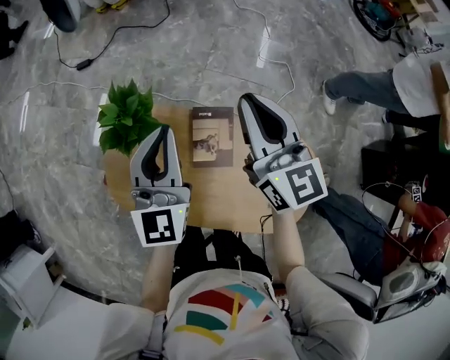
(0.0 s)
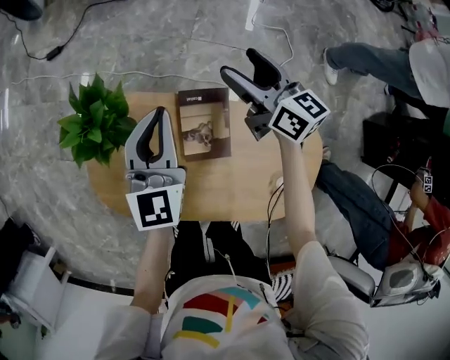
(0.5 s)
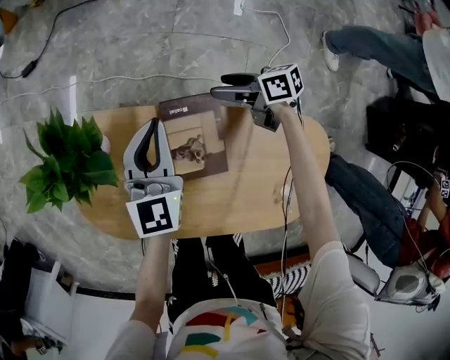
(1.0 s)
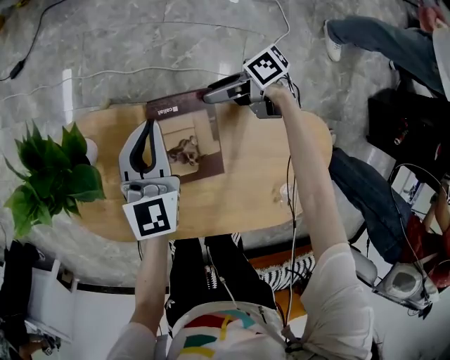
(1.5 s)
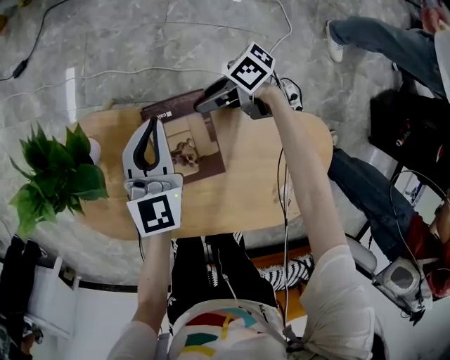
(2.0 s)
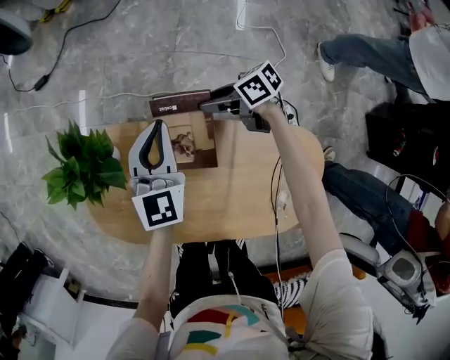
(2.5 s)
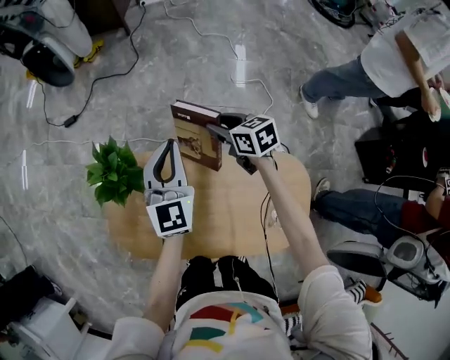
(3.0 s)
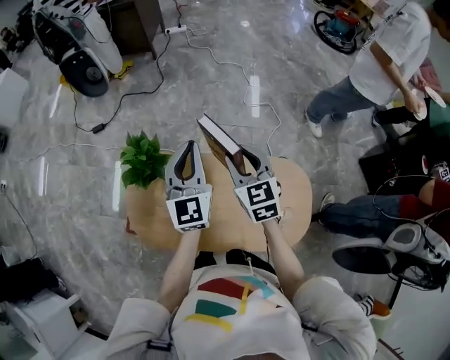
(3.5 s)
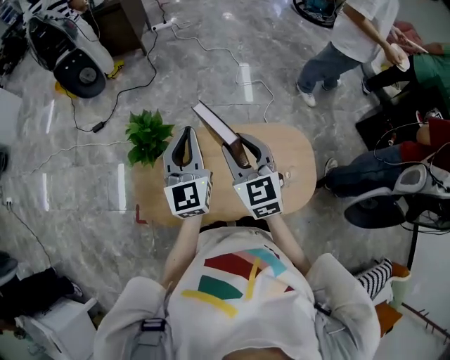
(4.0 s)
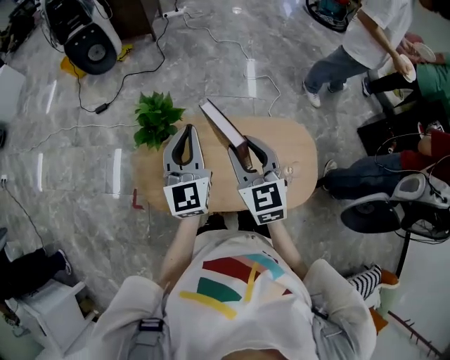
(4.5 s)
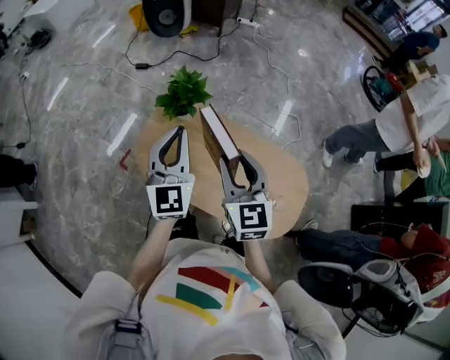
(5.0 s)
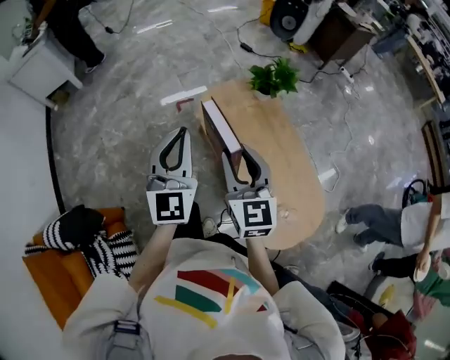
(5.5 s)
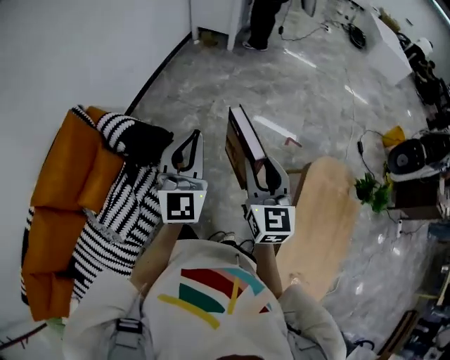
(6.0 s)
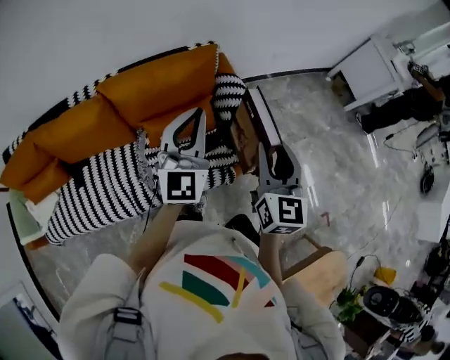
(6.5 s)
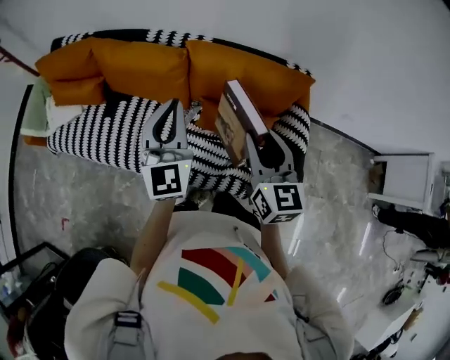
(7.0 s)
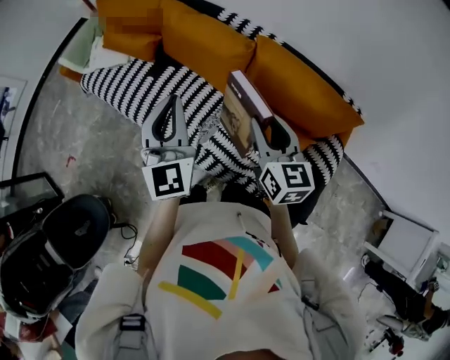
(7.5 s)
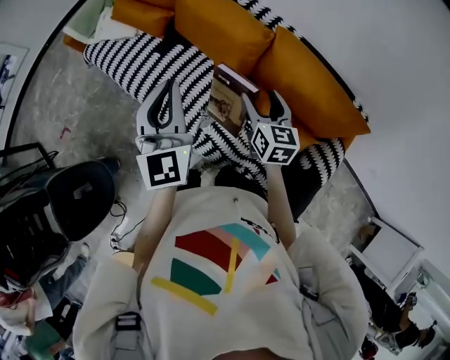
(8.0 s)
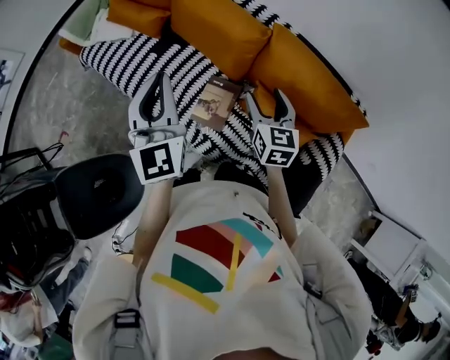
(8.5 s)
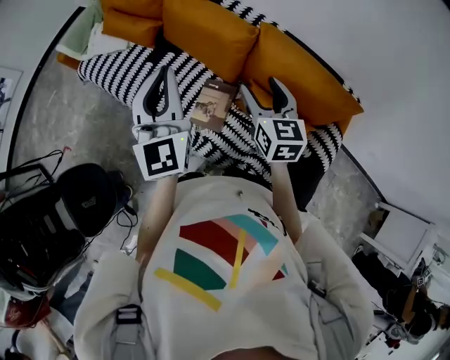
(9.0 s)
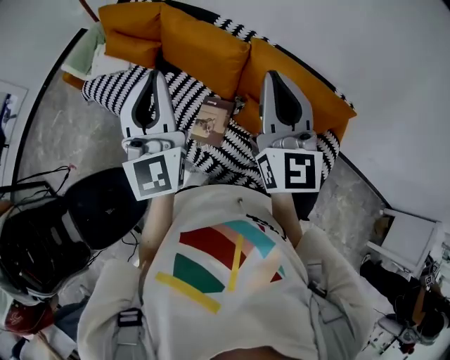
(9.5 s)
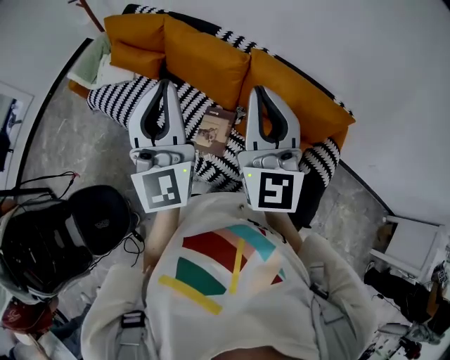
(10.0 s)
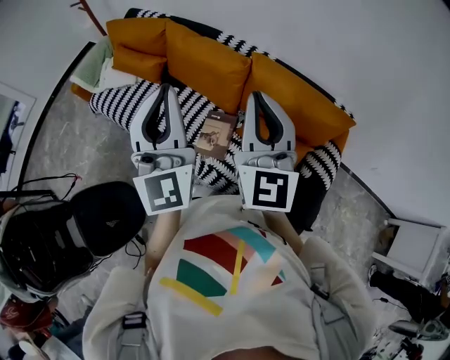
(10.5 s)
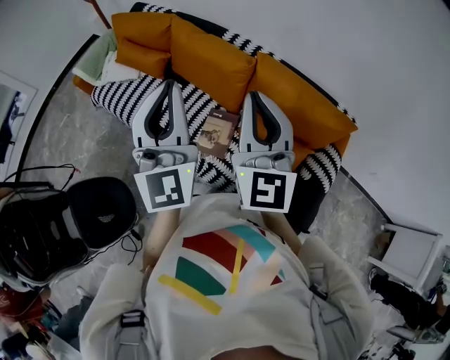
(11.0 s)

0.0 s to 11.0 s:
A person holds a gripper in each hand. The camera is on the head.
0.0 to 2.0 s: The left gripper shifts roughly 30 cm downward, and turns by roughly 20 degrees. Meanwhile the right gripper travels downward by about 50 cm, changes its angle by about 90 degrees, and opens.
2.0 to 3.5 s: Both grippers travel together upward, roughly 40 cm. The left gripper swivels some 20 degrees; the right gripper swivels some 90 degrees.
3.5 to 5.5 s: The two grippers travel together, roughly 50 cm. The left gripper changes its angle by approximately 60 degrees, while the right gripper turns by roughly 50 degrees.
5.5 to 7.5 s: The two grippers travel together, roughly 1 m. The left gripper turns by roughly 150 degrees. The right gripper turns by approximately 150 degrees.
7.5 to 9.0 s: The right gripper moves forward, approximately 5 cm, reaches roughly 10 cm downward, then returns, and opens up.
9.0 to 11.0 s: The right gripper moves upward and backward, about 20 cm, turns by about 30 degrees, and closes, while the left gripper goes some 15 cm upward and backward.

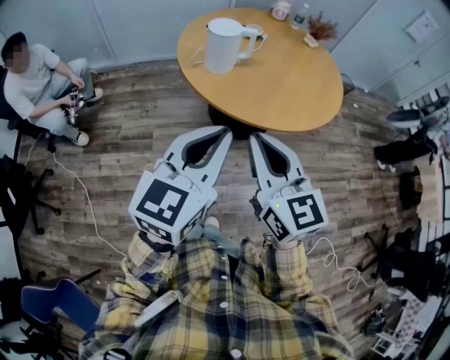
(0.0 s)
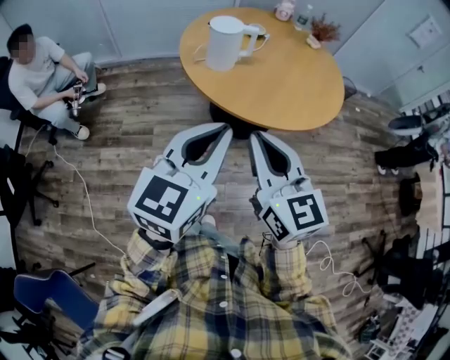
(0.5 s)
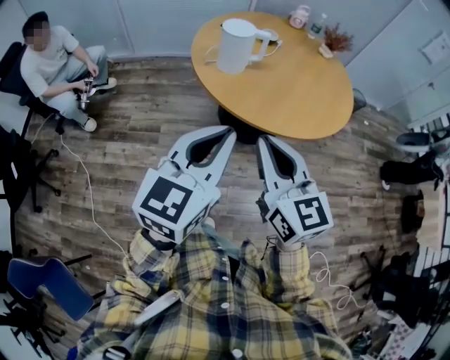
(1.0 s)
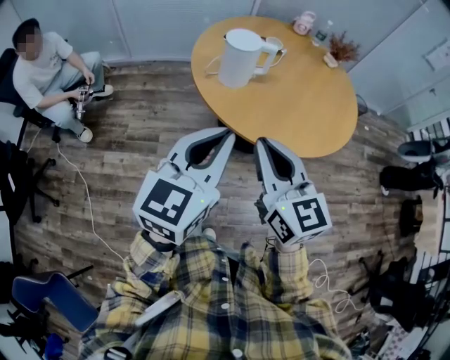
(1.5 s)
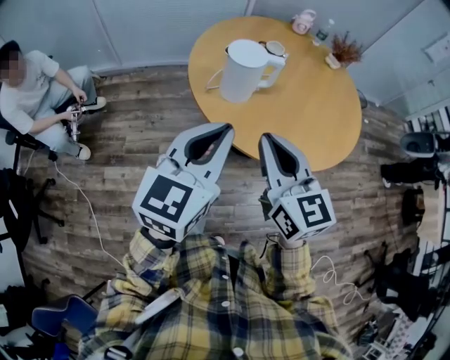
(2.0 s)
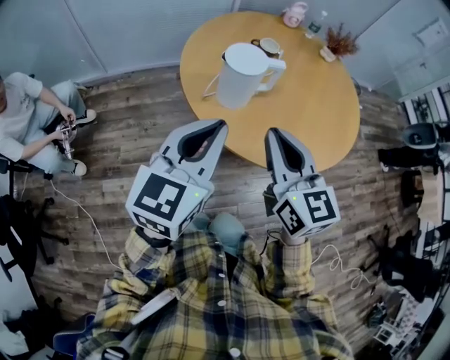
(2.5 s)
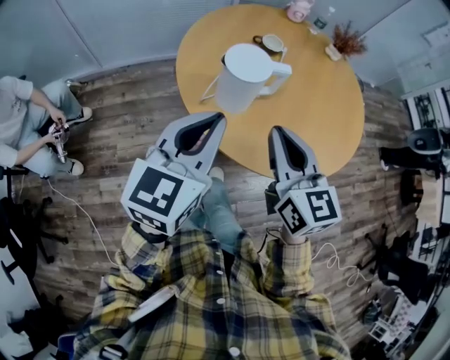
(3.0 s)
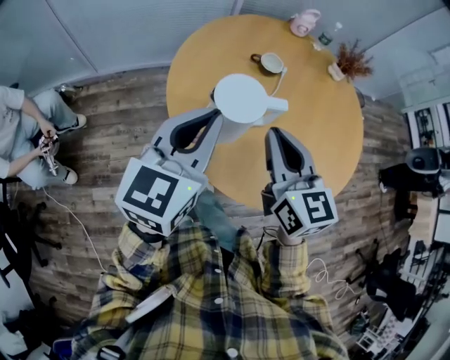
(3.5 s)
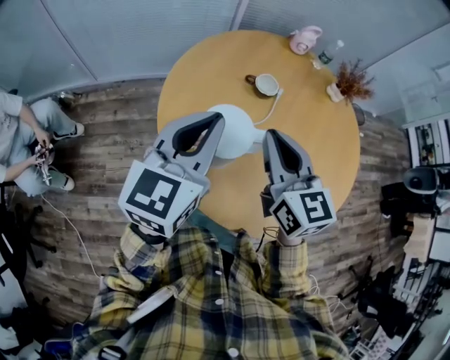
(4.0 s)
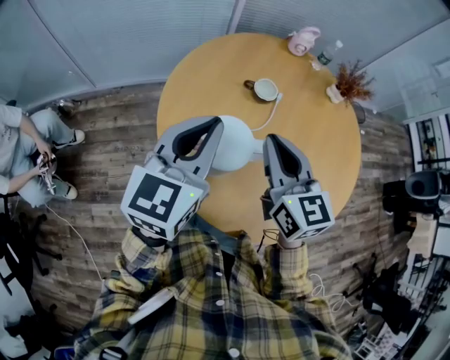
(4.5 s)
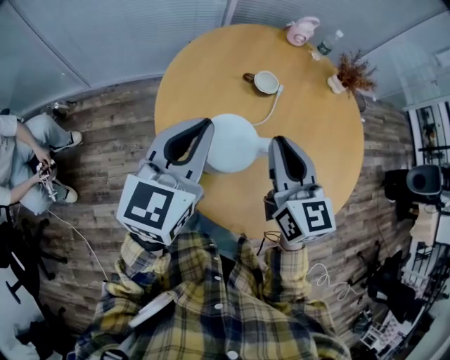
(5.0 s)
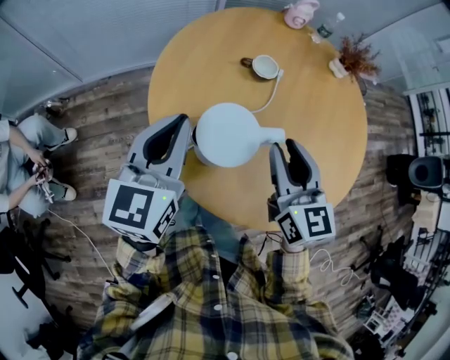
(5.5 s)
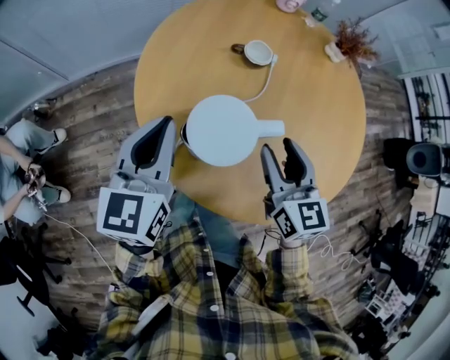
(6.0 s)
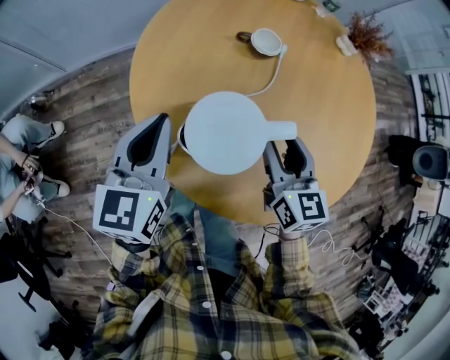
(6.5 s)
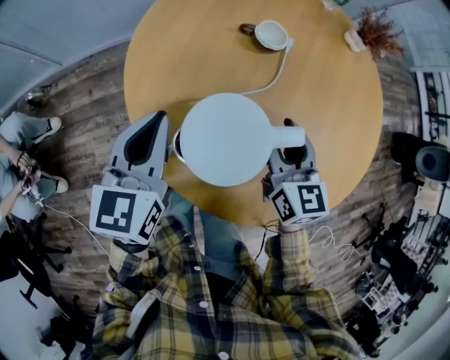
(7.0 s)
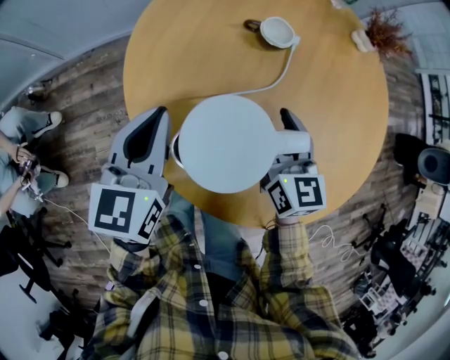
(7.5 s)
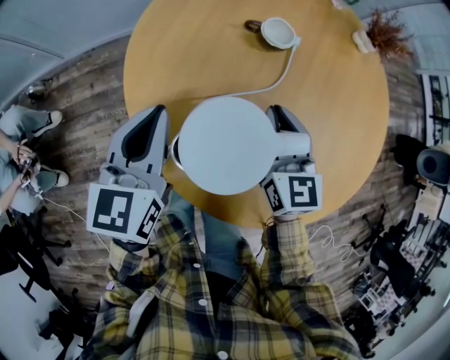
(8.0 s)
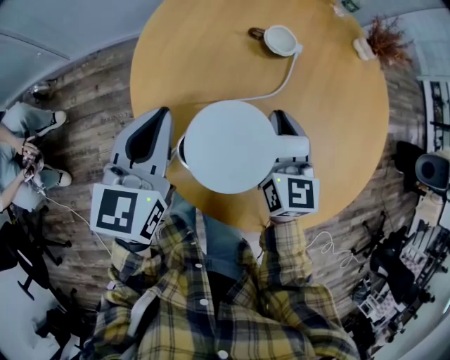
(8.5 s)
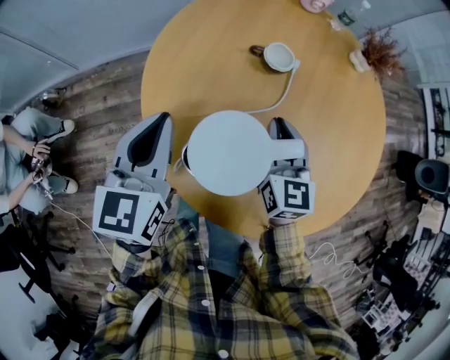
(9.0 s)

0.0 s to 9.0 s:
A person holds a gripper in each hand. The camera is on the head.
0.0 to 2.0 s: The two grippers go about 15 cm forward.
2.0 to 4.5 s: Both grippers travel together forward, approximately 30 cm.
4.5 to 7.0 s: The right gripper travels downward by about 15 cm, and opens. Meanwhile the left gripper shifts some 20 cm downward and to the left.
7.0 to 9.0 s: The right gripper closes up.

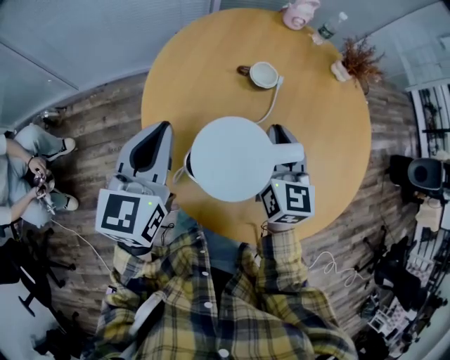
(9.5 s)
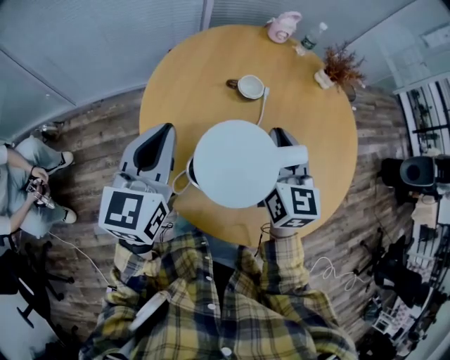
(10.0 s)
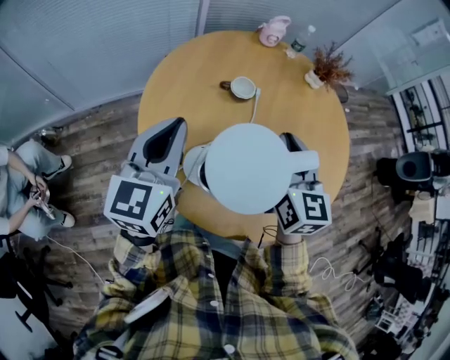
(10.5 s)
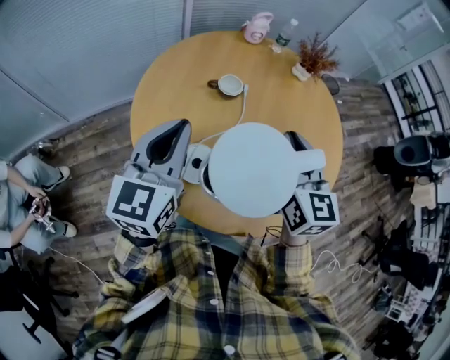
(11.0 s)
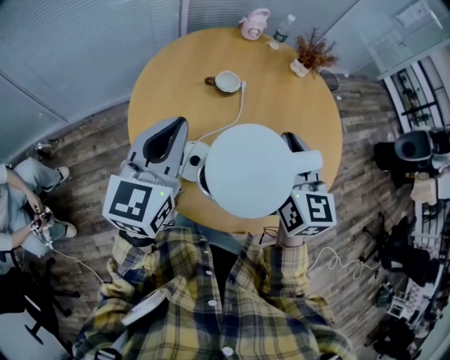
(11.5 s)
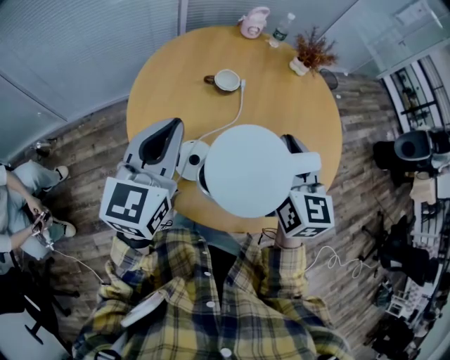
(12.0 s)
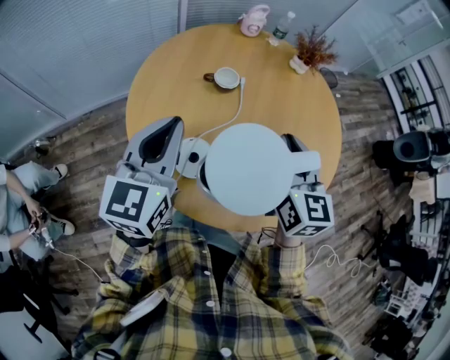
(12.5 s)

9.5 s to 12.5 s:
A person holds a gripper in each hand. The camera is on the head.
9.5 to 11.0 s: The right gripper goes some 15 cm upward, to the right and backward, while the left gripper is displaced to the right and upward by about 10 cm.
11.0 to 12.5 s: The grippers move only a little.

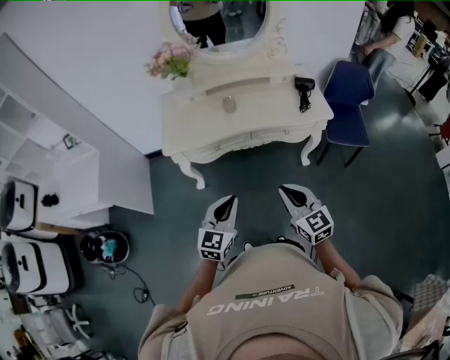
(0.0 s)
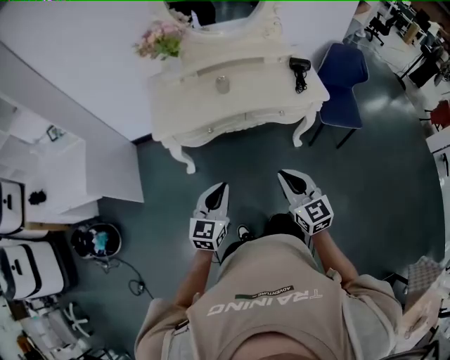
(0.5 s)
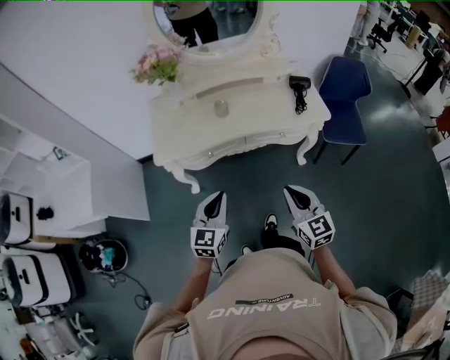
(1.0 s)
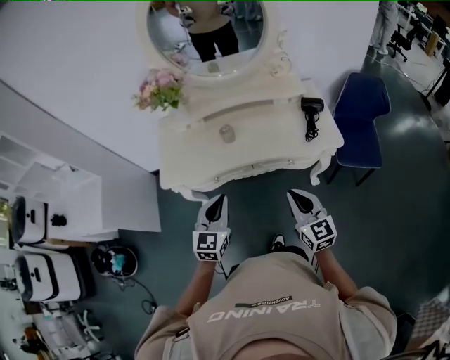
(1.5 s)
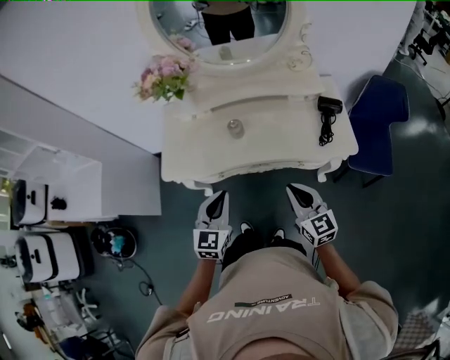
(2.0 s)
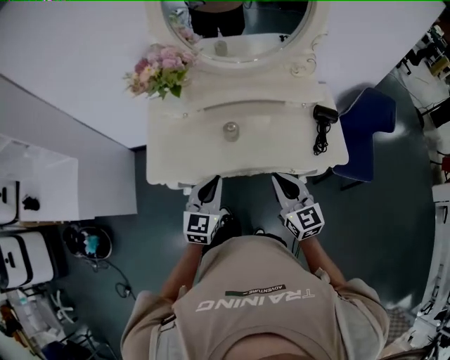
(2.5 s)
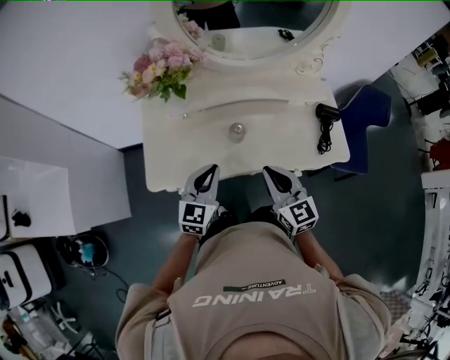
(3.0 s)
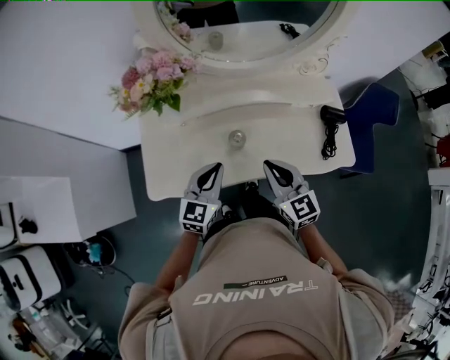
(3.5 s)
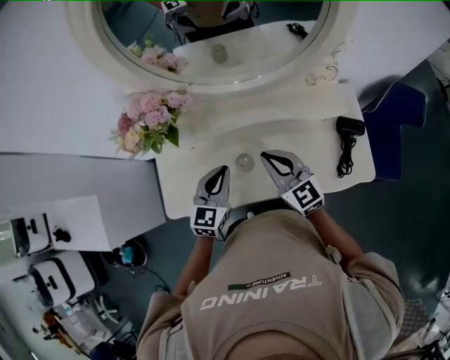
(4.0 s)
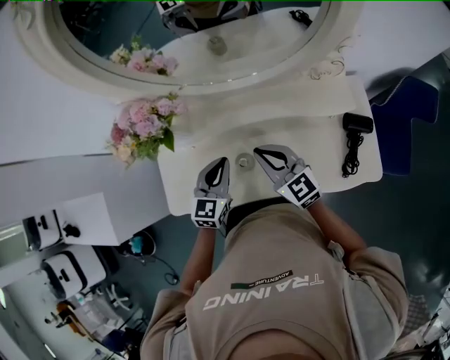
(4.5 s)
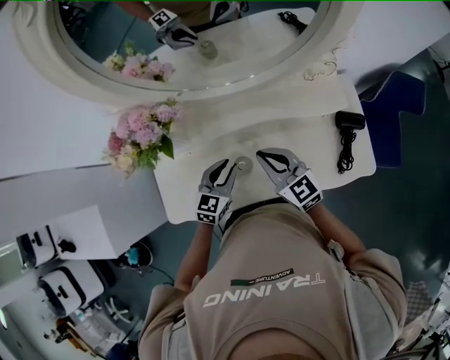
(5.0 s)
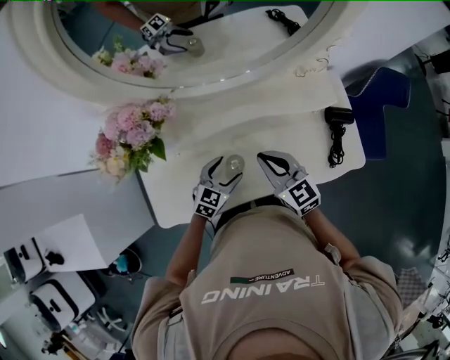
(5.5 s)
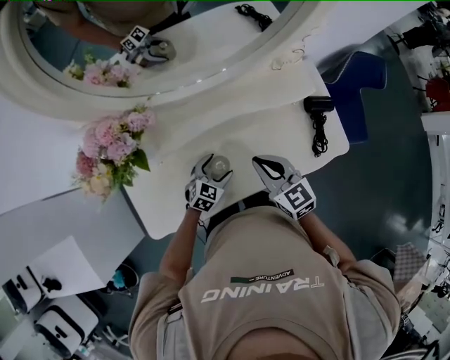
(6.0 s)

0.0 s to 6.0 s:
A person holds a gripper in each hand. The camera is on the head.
0.0 to 2.0 s: Both grippers travel together forward, some 25 cm.
2.0 to 4.0 s: The two grippers go some 30 cm forward.
4.0 to 6.0 s: The right gripper shifts by approximately 5 cm, and swivels approximately 20 degrees. Meanwhile the left gripper shifts approximately 20 cm downward, changes its angle by approximately 40 degrees, and opens up.
